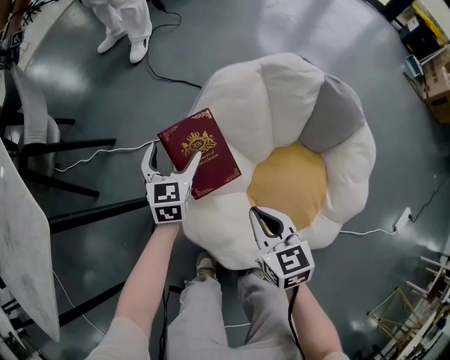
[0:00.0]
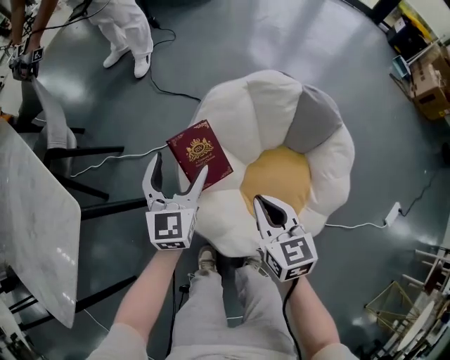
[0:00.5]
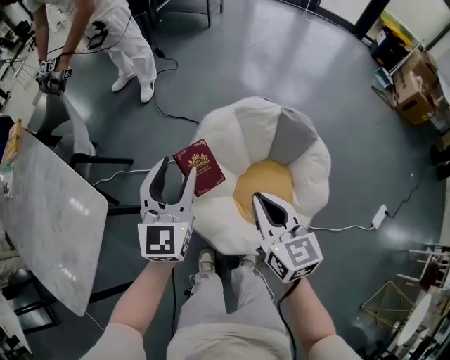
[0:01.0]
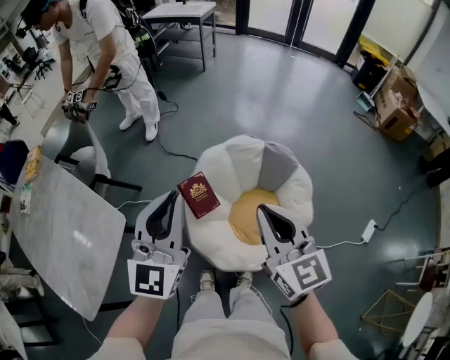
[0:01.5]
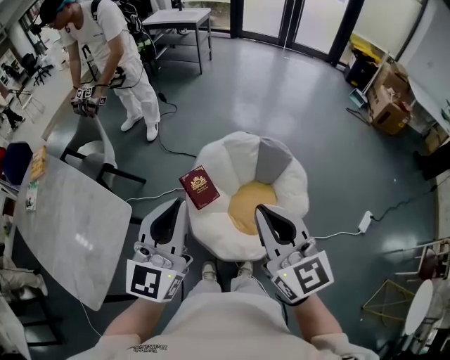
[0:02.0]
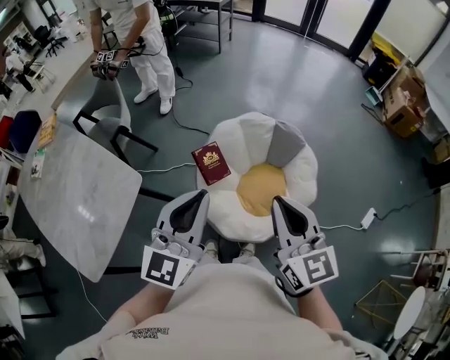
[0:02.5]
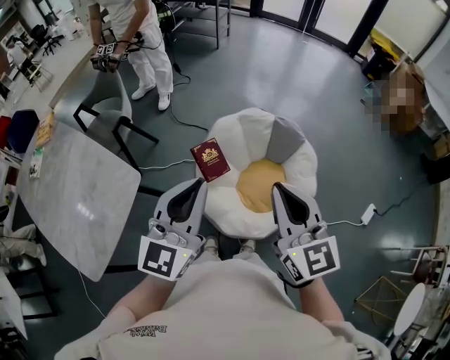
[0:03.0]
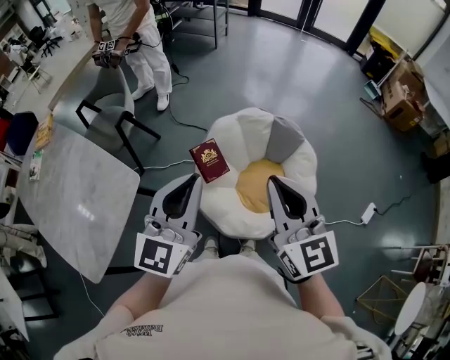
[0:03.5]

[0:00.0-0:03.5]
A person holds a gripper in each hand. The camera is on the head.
0:00.0 to 0:02.0: The left gripper travels upward and backward by roughly 80 cm, points its fingers some 40 degrees further upward, and closes up. The right gripper heads upward, covering roughly 70 cm, and tilts its fingers roughly 30 degrees upward.
0:02.0 to 0:03.5: There are only small adjustments of the grippers.

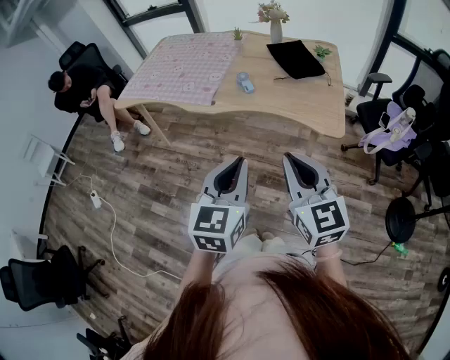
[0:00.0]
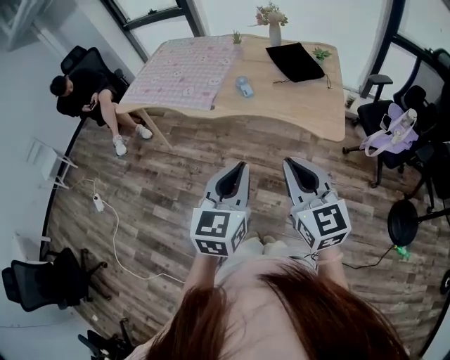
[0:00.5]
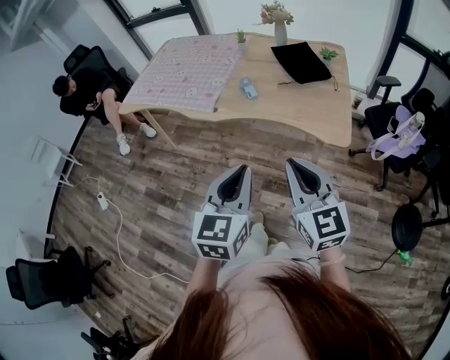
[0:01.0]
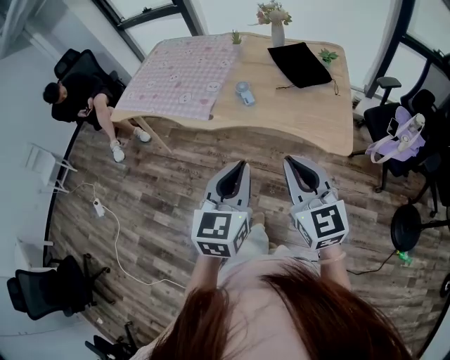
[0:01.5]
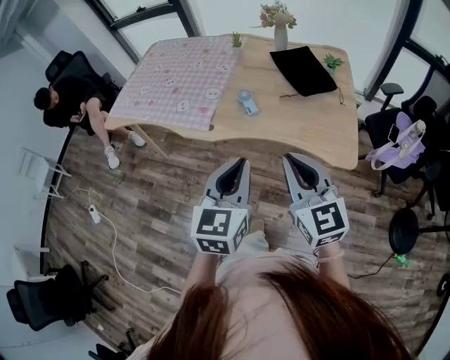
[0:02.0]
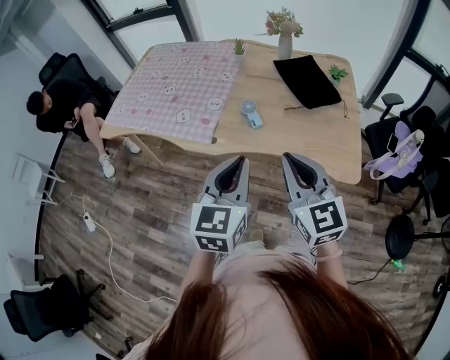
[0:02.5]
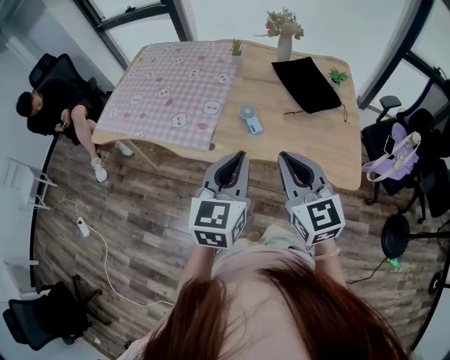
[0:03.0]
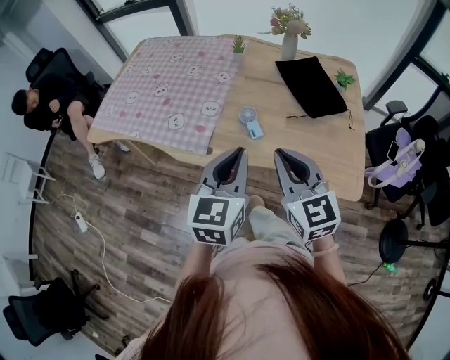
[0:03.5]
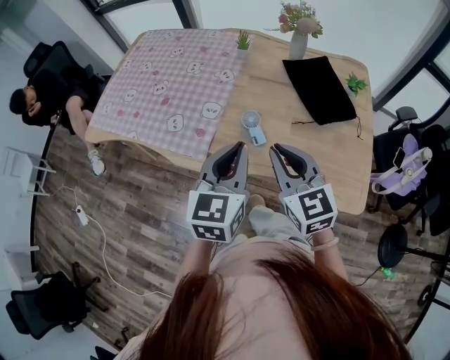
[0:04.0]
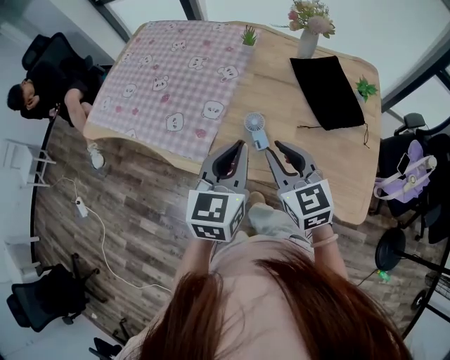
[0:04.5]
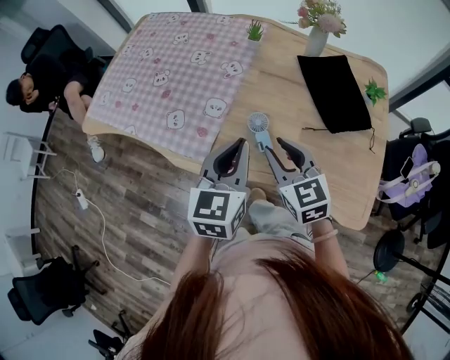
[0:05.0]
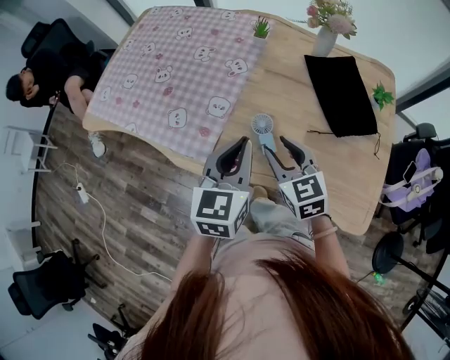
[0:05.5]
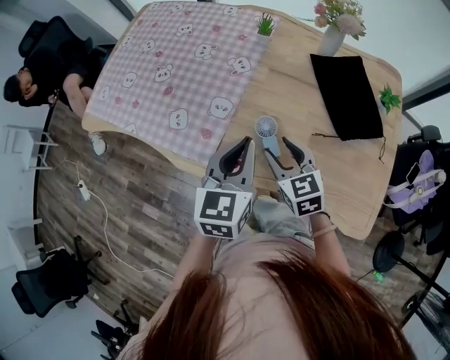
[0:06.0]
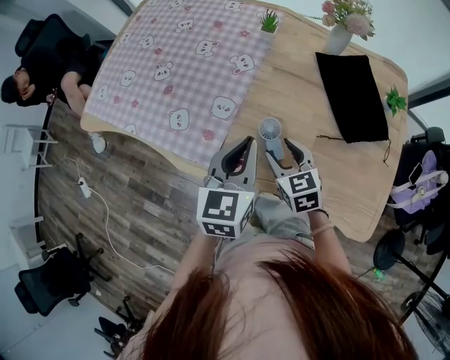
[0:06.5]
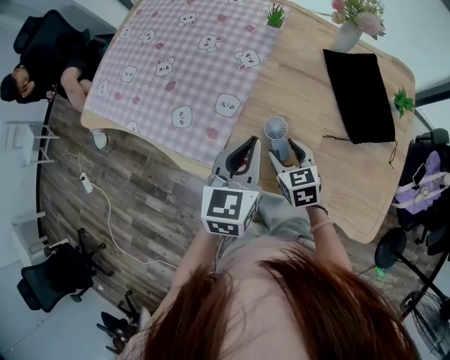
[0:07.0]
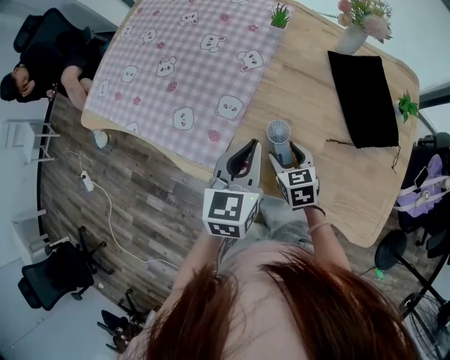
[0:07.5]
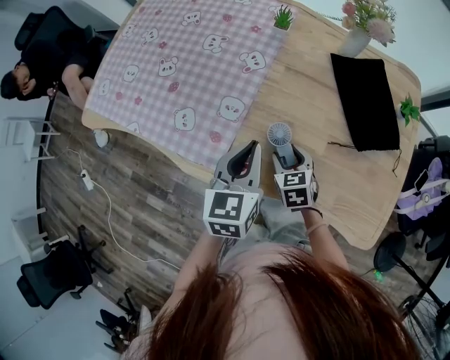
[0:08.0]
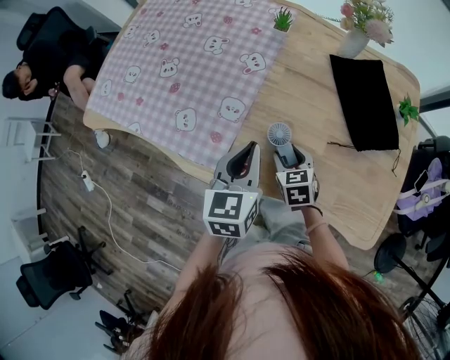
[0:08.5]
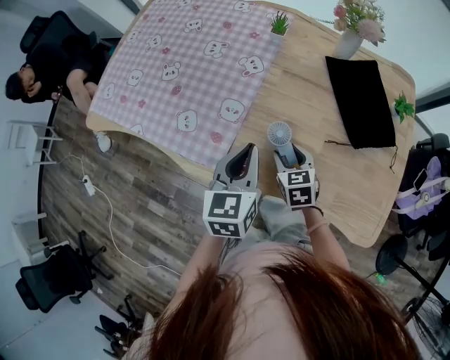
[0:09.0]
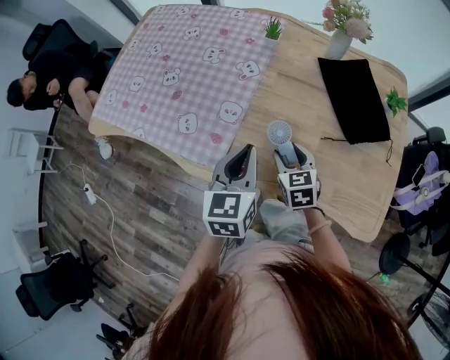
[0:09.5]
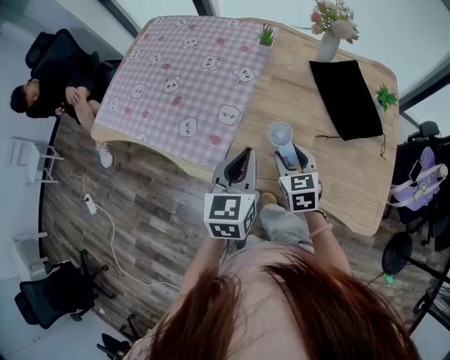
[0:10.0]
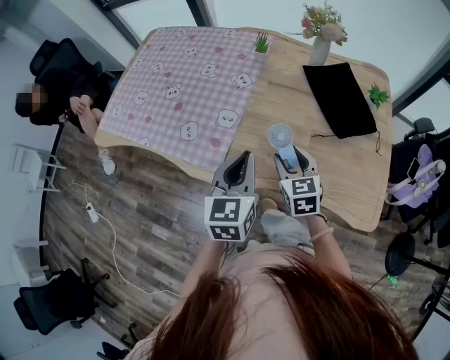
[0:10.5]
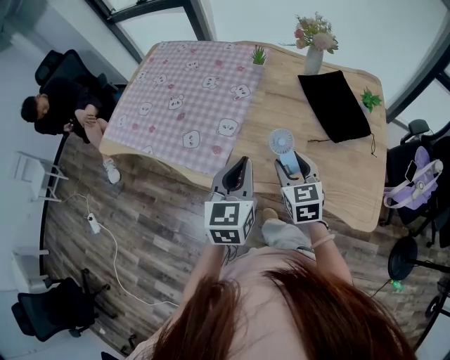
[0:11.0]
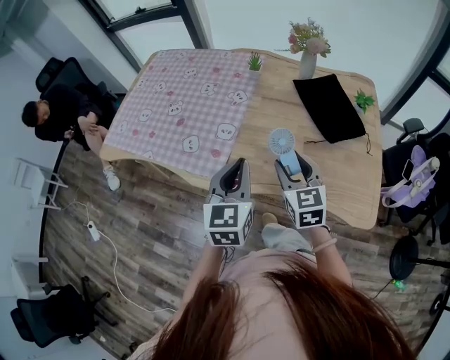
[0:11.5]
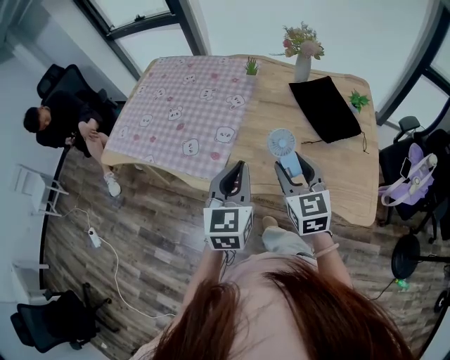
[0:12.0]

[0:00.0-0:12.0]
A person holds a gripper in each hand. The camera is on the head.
0:00.0 to 0:02.0: The grippers both shift forward by some 20 cm.
0:02.0 to 0:04.0: Both grippers move forward, some 25 cm.
0:04.0 to 0:06.0: The left gripper moves forward and downward, some 15 cm. The right gripper shifts about 20 cm downward and forward, and opens.
0:06.0 to 0:08.0: The left gripper travels downward by roughly 5 cm, while the right gripper shifts about 15 cm downward.
0:08.0 to 0:10.0: The right gripper heads upward, covering some 10 cm; the left gripper is displaced backward by approximately 5 cm.
0:10.0 to 0:12.0: The right gripper heads upward and backward, covering about 15 cm. Meanwhile the left gripper heads backward and upward, covering some 10 cm.

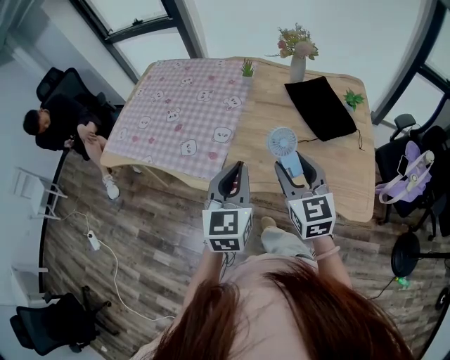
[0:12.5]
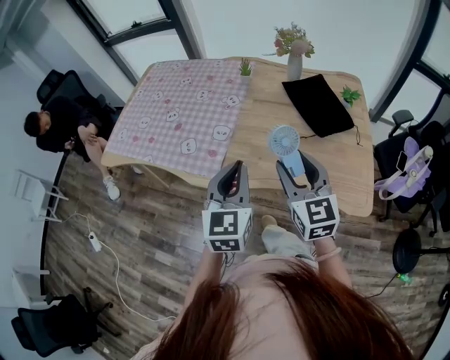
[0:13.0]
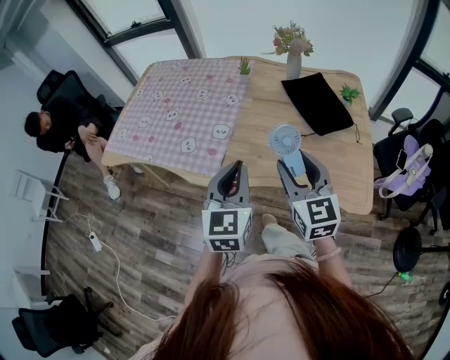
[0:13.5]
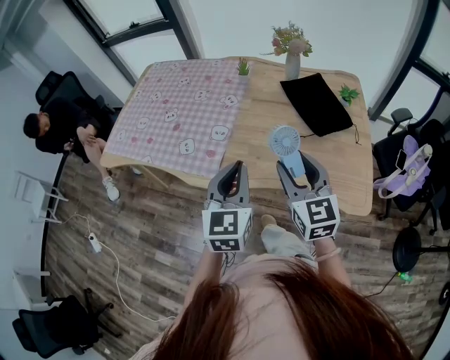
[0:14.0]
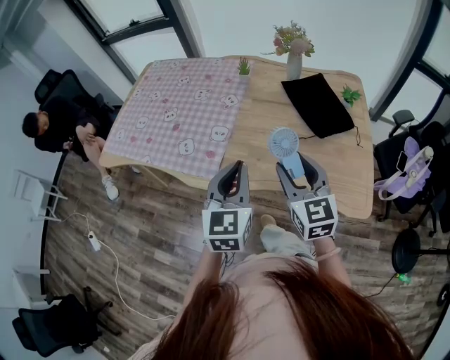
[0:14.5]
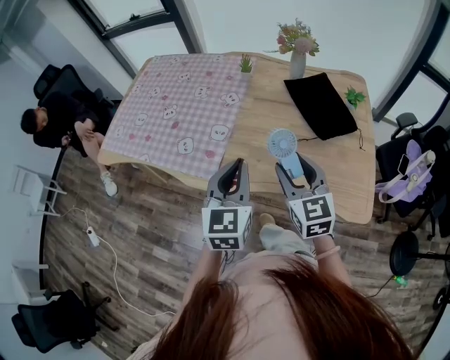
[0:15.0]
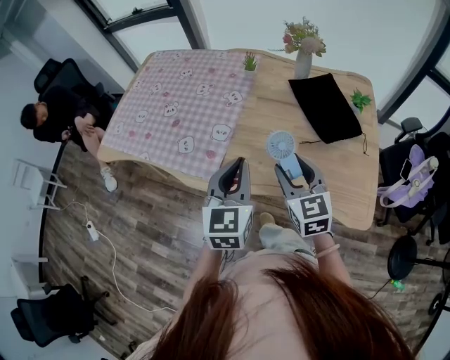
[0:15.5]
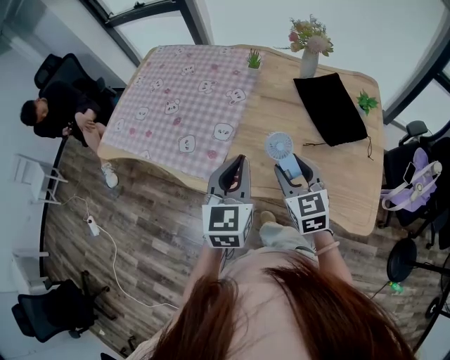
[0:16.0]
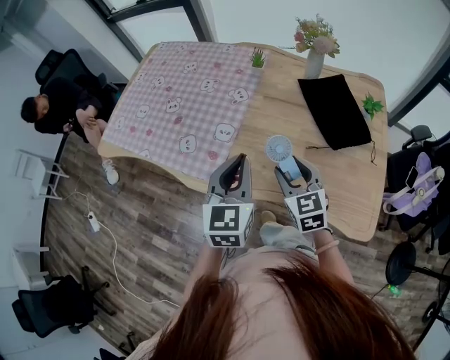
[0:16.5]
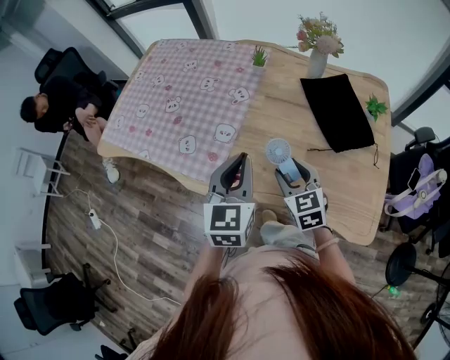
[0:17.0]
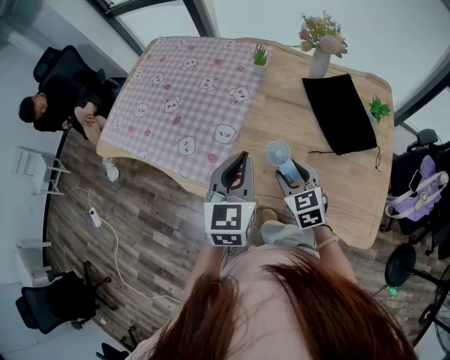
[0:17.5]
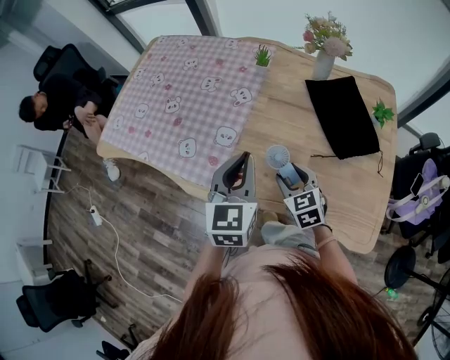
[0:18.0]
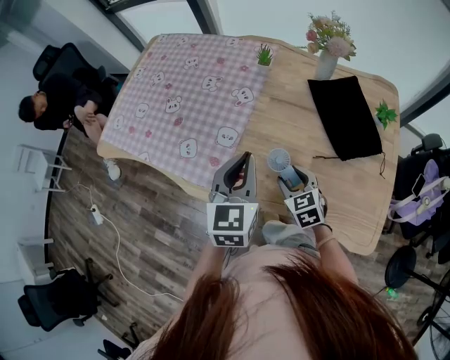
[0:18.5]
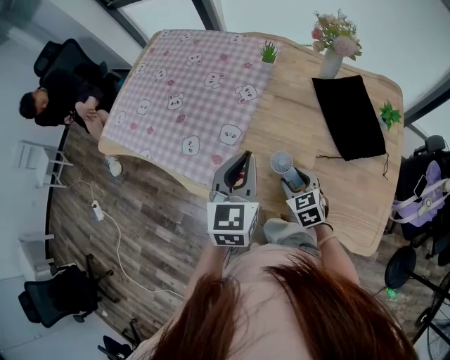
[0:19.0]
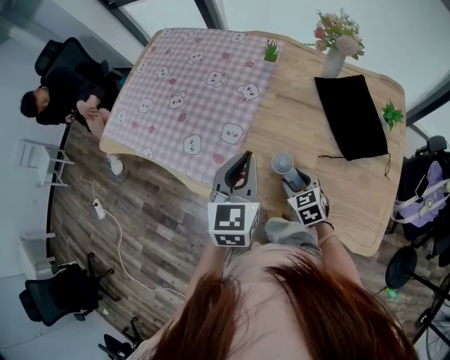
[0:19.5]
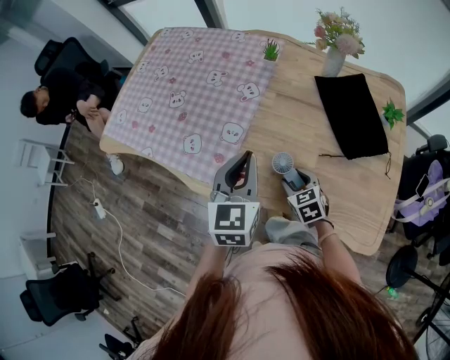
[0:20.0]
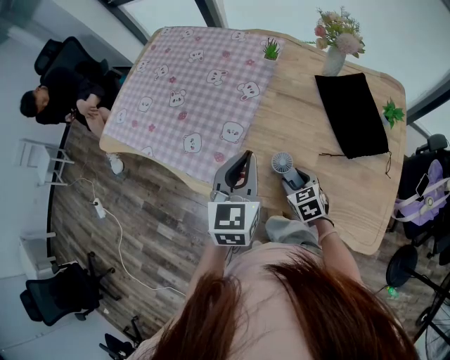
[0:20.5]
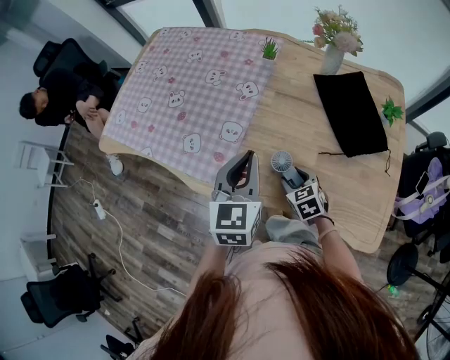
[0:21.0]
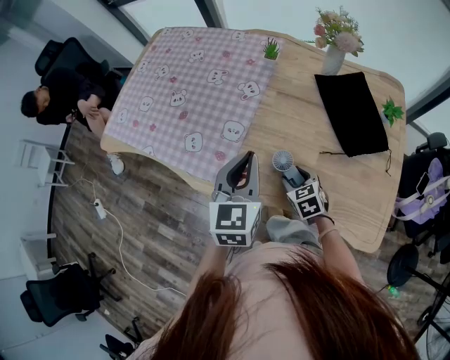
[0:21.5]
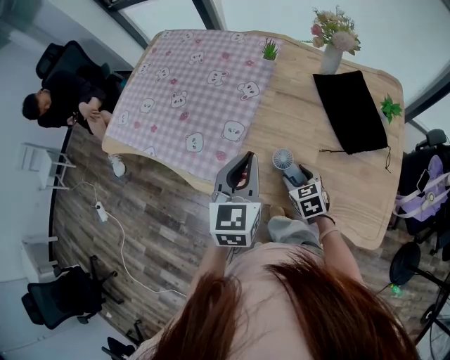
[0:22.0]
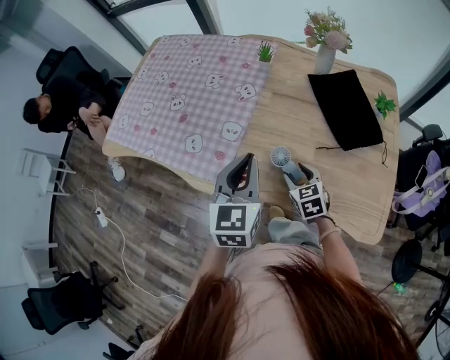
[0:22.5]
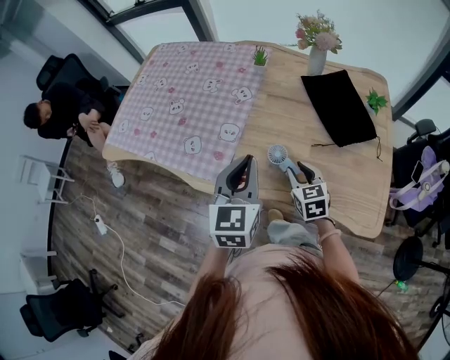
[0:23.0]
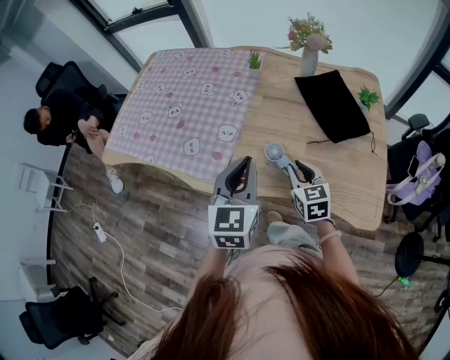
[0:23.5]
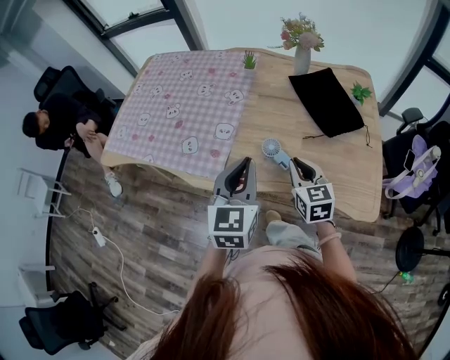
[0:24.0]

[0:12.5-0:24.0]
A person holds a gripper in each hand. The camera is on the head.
0:12.5 to 0:14.5: The grippers move only a little.
0:14.5 to 0:16.5: The right gripper travels downward and forward by about 15 cm. The left gripper heads forward, covering roughly 10 cm.
0:16.5 to 0:18.5: The right gripper is displaced downward by roughly 10 cm. Meanwhile the left gripper goes roughly 5 cm forward.
0:18.5 to 0:20.0: The right gripper moves downward, approximately 5 cm.
0:20.0 to 0:22.0: The grippers stay close to where they were, moving slightly.
0:22.0 to 0:24.0: The right gripper heads upward and backward, covering about 15 cm, changes its angle by approximately 30 degrees, and closes. Meanwhile the left gripper is displaced backward by approximately 10 cm.
